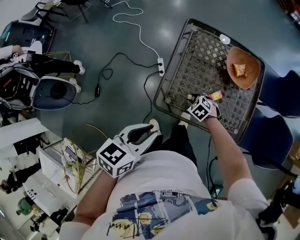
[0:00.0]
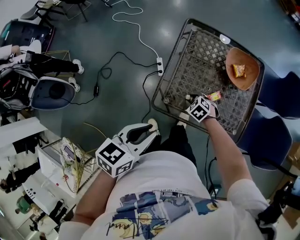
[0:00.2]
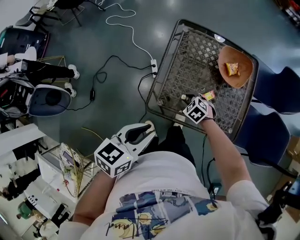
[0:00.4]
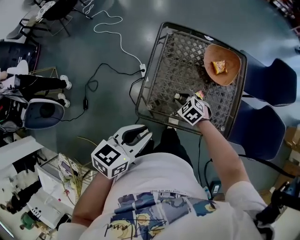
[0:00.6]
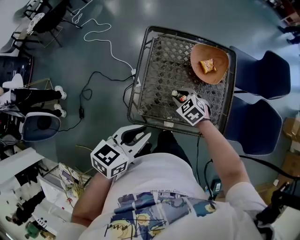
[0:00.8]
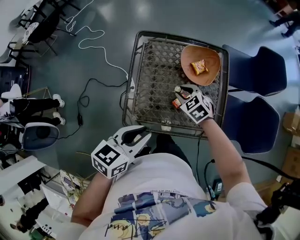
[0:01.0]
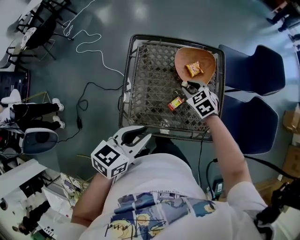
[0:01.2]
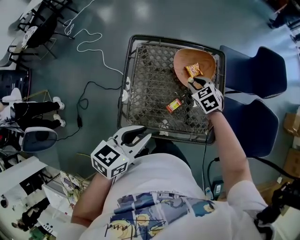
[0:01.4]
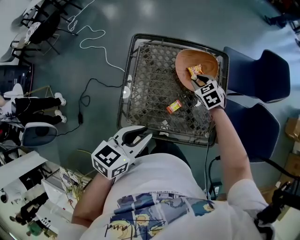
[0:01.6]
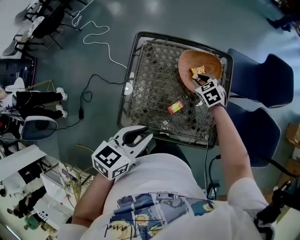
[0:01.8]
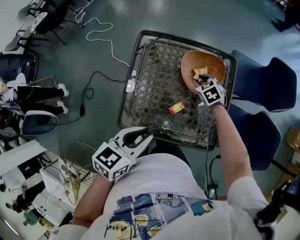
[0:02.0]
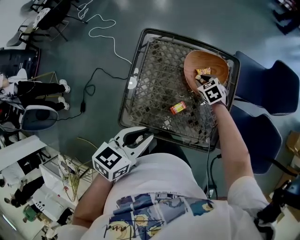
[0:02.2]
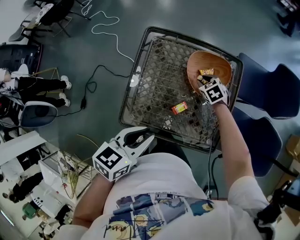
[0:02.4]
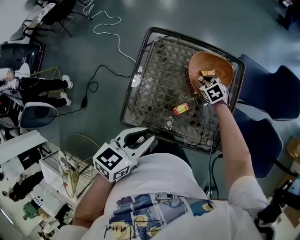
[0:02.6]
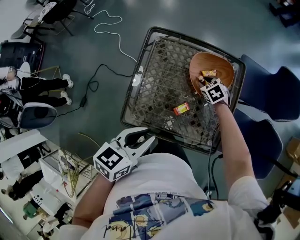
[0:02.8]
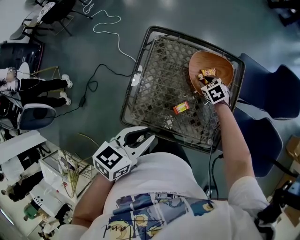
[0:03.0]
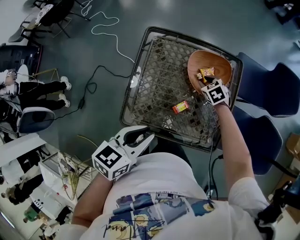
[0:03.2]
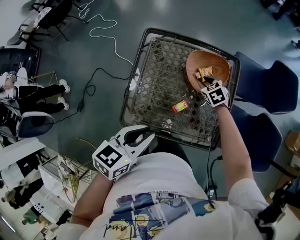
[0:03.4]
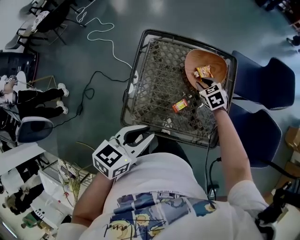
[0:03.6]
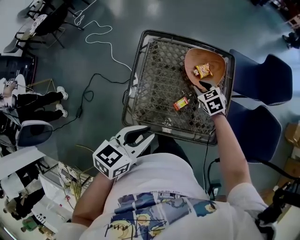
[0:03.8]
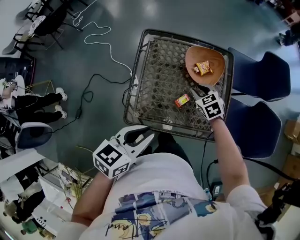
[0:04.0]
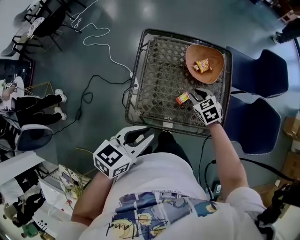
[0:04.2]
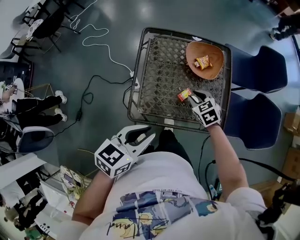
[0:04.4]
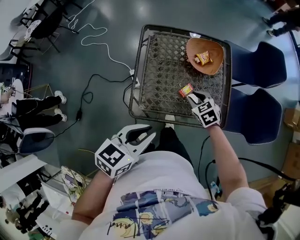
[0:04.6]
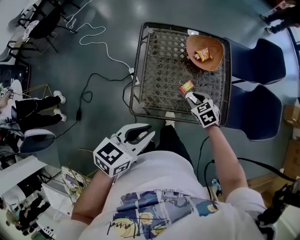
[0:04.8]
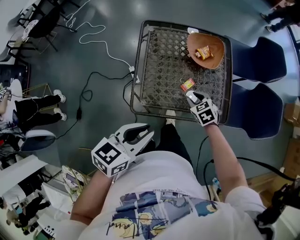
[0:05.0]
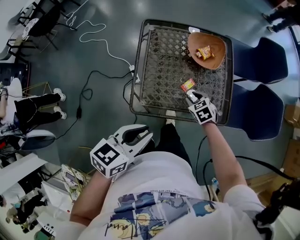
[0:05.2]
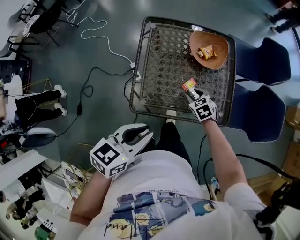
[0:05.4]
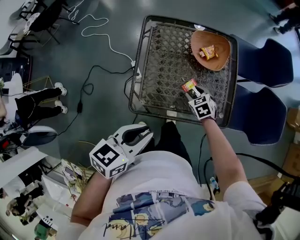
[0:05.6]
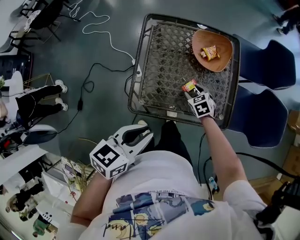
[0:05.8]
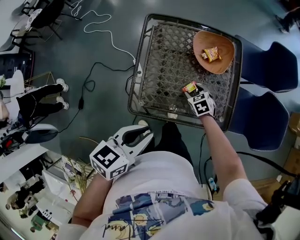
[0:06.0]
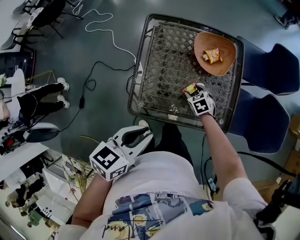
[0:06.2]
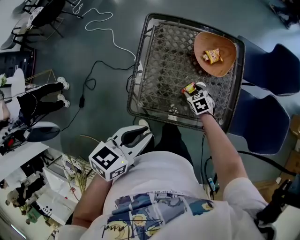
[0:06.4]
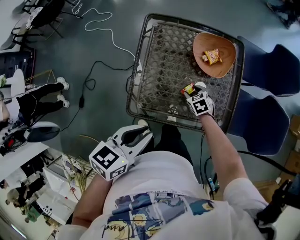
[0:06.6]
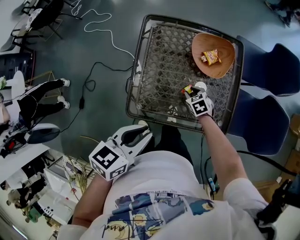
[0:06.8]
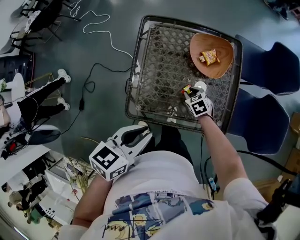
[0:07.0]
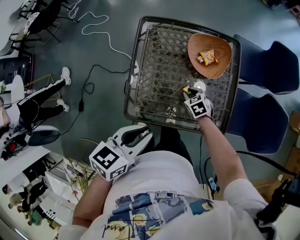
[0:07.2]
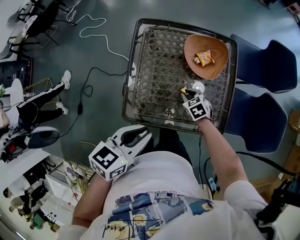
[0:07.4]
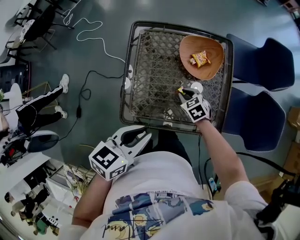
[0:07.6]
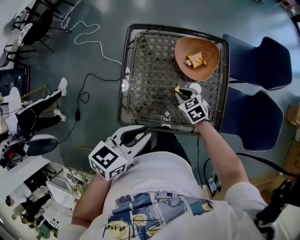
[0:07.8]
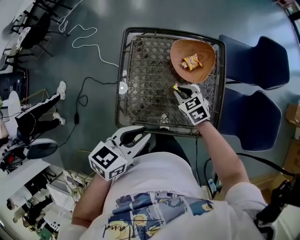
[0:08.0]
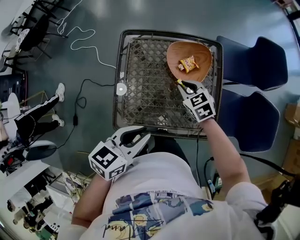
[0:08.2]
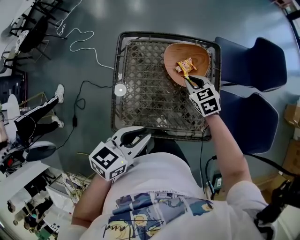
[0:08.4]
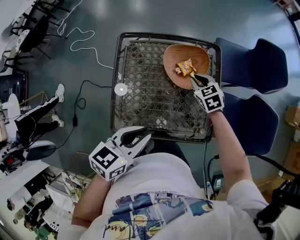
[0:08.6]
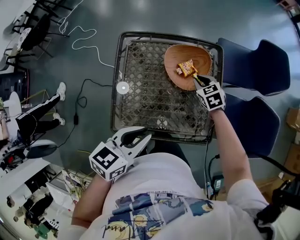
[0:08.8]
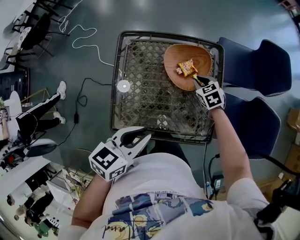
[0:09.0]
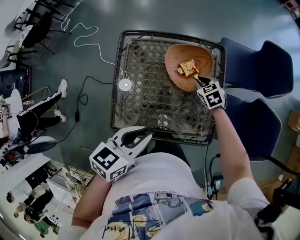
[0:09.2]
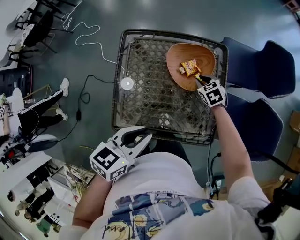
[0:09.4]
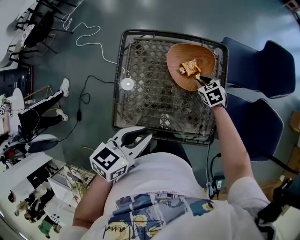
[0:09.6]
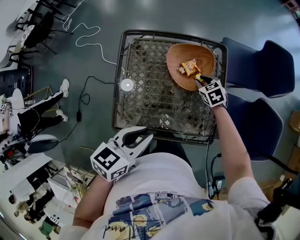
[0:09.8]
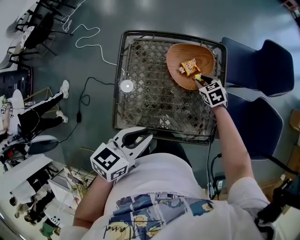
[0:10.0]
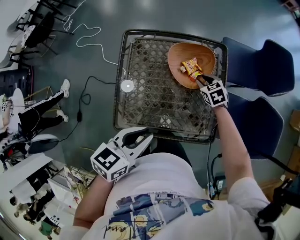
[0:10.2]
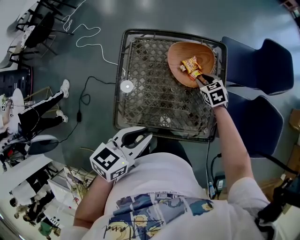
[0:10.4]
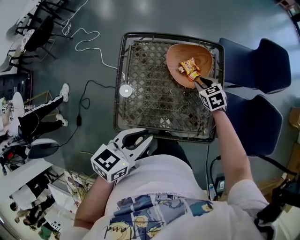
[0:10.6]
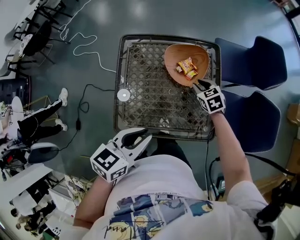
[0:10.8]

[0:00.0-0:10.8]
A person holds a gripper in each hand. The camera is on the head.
0:00.0 to 0:01.6: The left gripper ends up some 20 cm from where it was. Meanwhile the right gripper moves some 30 cm, and swivels some 30 degrees.
0:01.6 to 0:03.0: The right gripper travels downward by approximately 5 cm.
0:03.0 to 0:04.6: The right gripper moves backward, some 20 cm; the left gripper moves backward and to the left, about 10 cm.
0:04.6 to 0:06.2: The right gripper goes approximately 10 cm downward, and opens its fingers.
0:06.2 to 0:07.8: The right gripper moves upward, approximately 10 cm, and closes up, while the left gripper is displaced forward by approximately 5 cm.
0:07.8 to 0:09.2: The left gripper goes roughly 10 cm forward and to the right. Meanwhile the right gripper heads forward and to the right, covering some 20 cm.
0:09.2 to 0:10.8: The right gripper ends up roughly 5 cm from where it was.

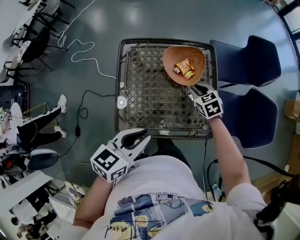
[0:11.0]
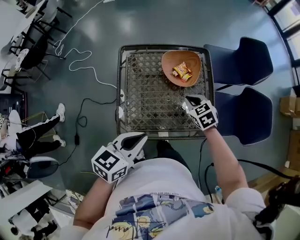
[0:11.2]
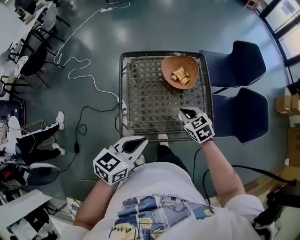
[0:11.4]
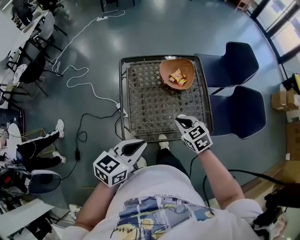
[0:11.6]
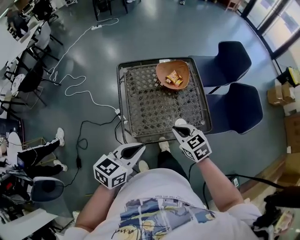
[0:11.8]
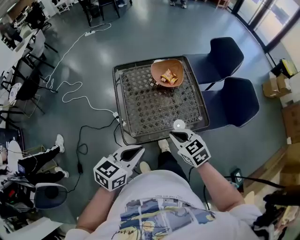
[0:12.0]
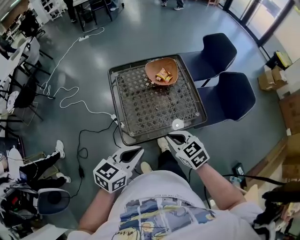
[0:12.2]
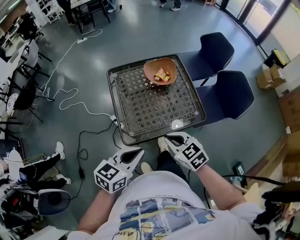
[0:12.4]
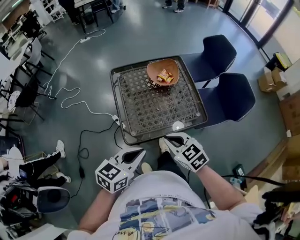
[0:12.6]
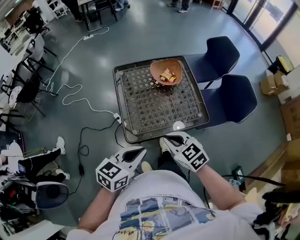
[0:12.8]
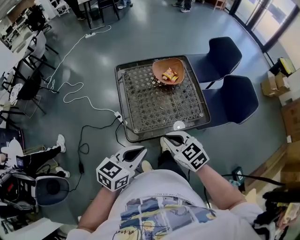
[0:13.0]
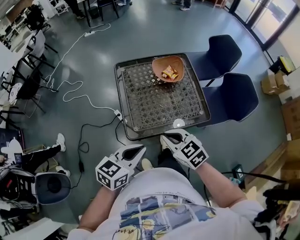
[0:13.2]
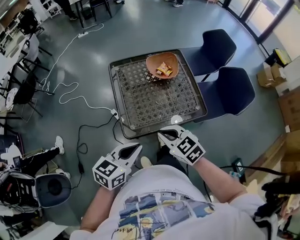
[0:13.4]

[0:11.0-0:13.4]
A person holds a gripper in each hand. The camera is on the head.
0:11.0 to 0:12.2: The right gripper is displaced backward and upward by about 35 cm, and closes its fingers. Meanwhile the left gripper is displaced backward and to the left by some 20 cm.
0:12.2 to 0:13.4: The right gripper changes place by about 5 cm.

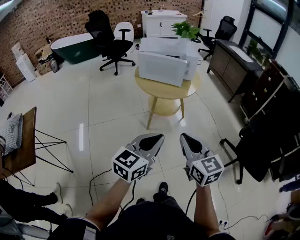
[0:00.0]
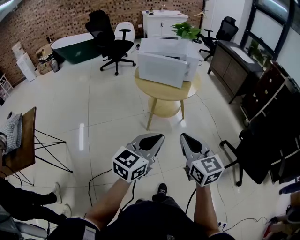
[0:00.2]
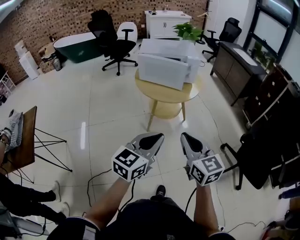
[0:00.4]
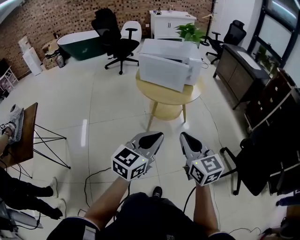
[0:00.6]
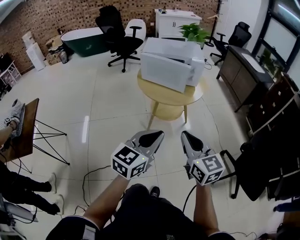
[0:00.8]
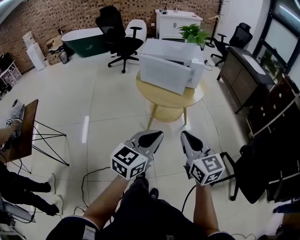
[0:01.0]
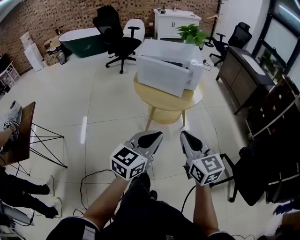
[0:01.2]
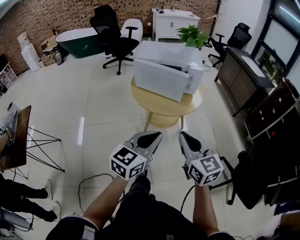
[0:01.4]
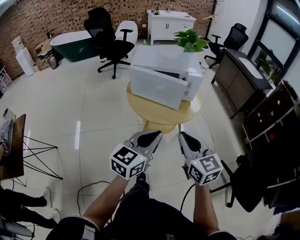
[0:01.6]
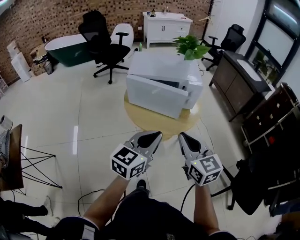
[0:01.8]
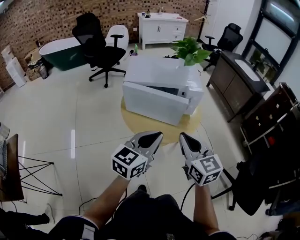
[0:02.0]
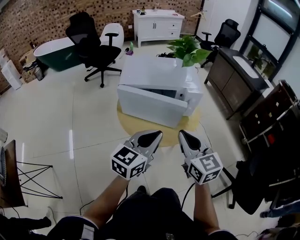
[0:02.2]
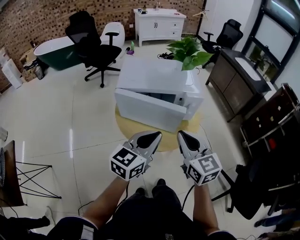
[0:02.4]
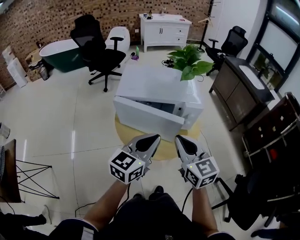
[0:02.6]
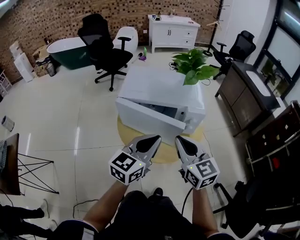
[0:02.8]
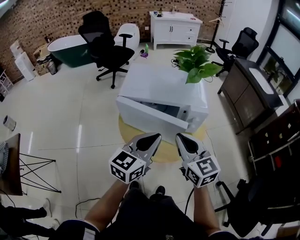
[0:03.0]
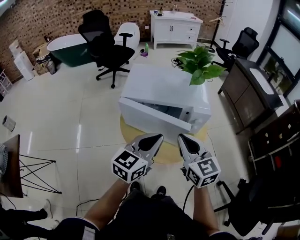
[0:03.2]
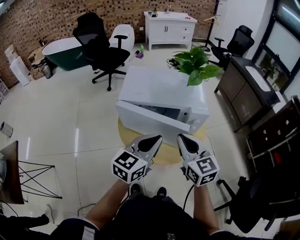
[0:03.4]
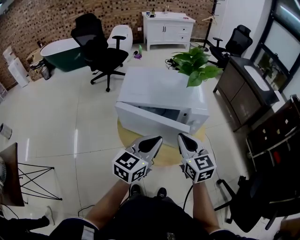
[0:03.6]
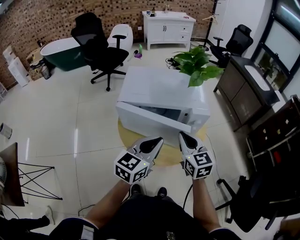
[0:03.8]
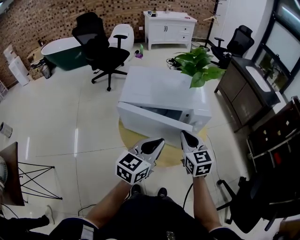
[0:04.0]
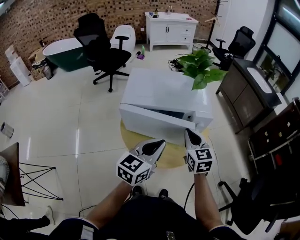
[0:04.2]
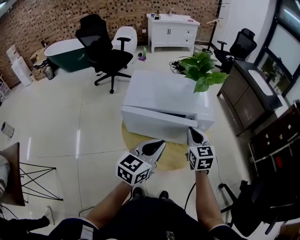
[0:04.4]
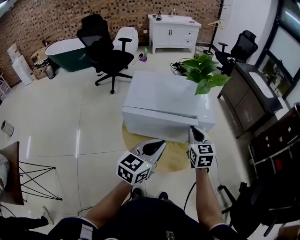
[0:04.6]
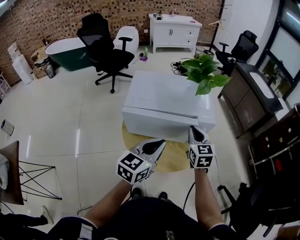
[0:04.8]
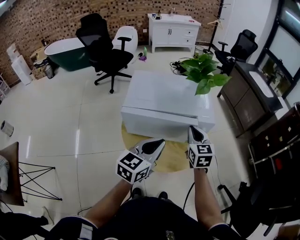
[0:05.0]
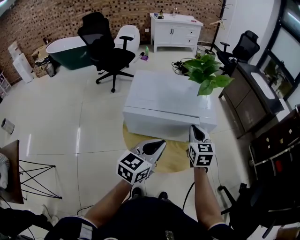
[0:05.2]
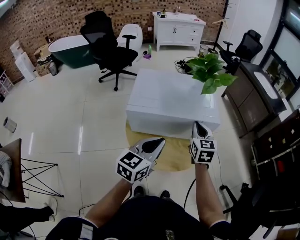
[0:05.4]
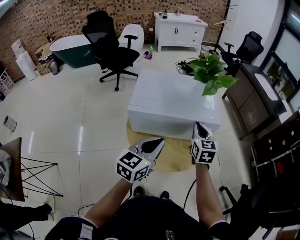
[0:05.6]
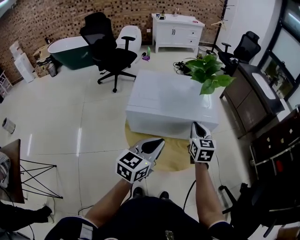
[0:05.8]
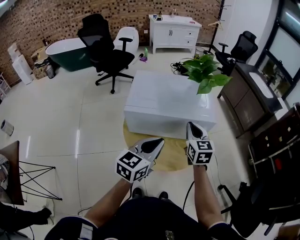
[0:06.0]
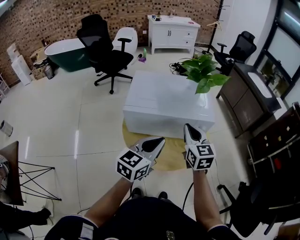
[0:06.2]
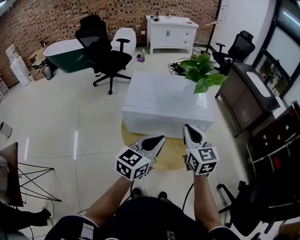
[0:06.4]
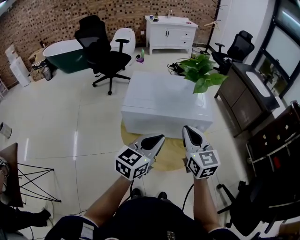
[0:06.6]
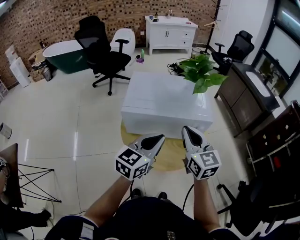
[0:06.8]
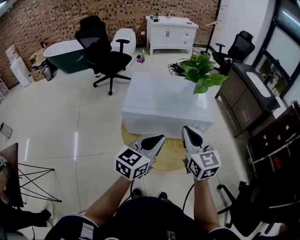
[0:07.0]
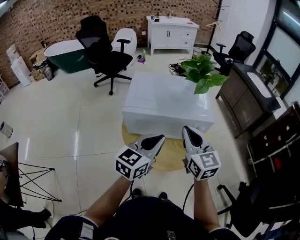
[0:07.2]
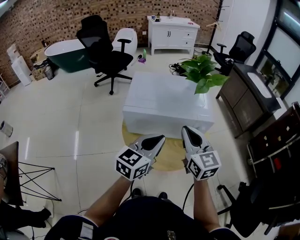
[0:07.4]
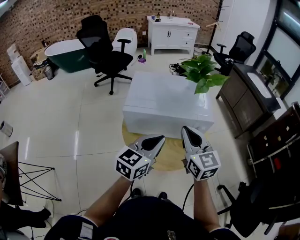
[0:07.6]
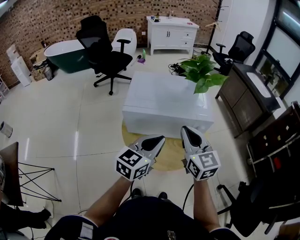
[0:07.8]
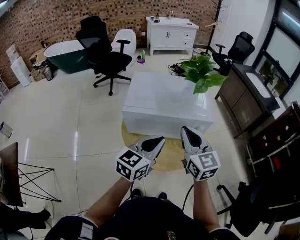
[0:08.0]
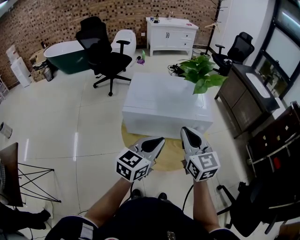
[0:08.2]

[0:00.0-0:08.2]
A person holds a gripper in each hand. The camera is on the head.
0:00.0 to 0:01.6: Both grippers travel together forward, about 25 cm.
0:01.6 to 0:03.2: The two grippers go approximately 25 cm forward.
0:03.2 to 0:05.0: The right gripper heads forward and downward, covering approximately 15 cm, and swivels roughly 20 degrees.
0:05.0 to 0:06.6: The right gripper moves upward and backward, some 10 cm.
0:06.6 to 0:08.2: There are only small adjustments of the grippers.

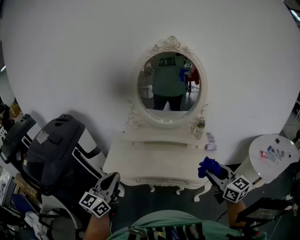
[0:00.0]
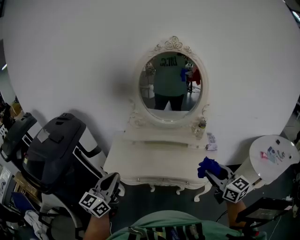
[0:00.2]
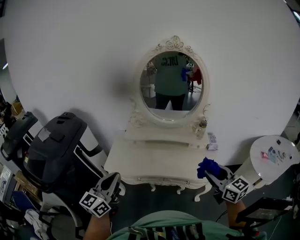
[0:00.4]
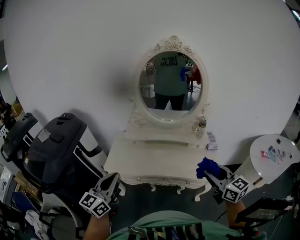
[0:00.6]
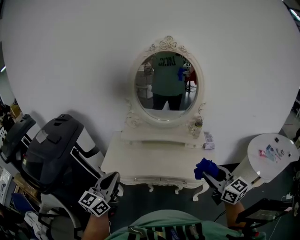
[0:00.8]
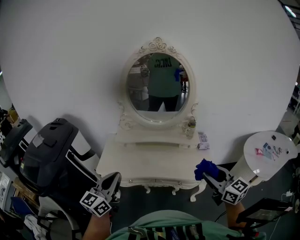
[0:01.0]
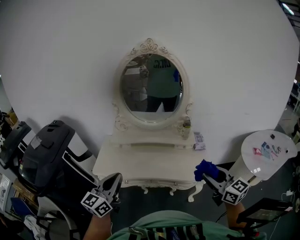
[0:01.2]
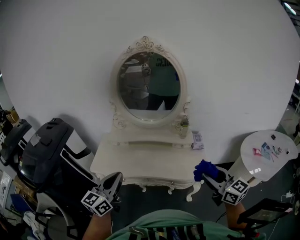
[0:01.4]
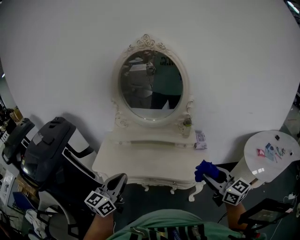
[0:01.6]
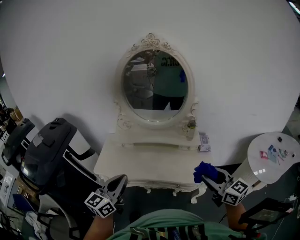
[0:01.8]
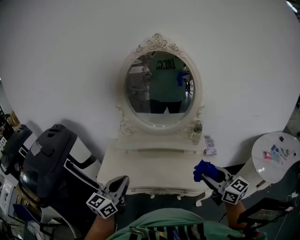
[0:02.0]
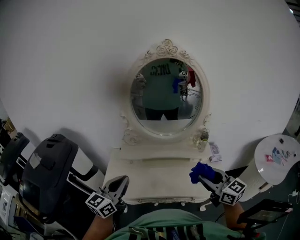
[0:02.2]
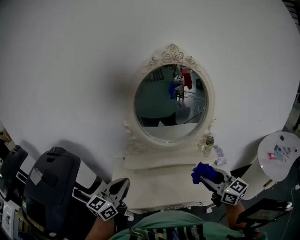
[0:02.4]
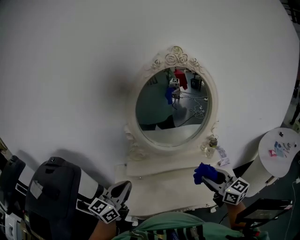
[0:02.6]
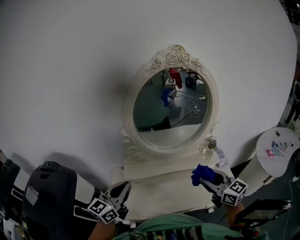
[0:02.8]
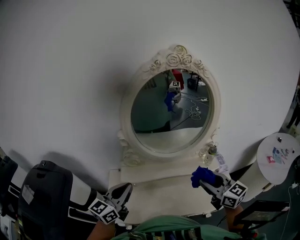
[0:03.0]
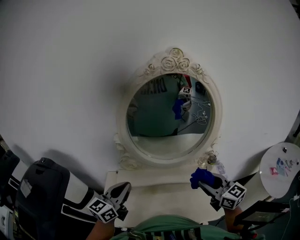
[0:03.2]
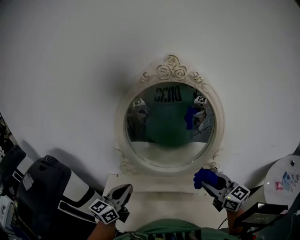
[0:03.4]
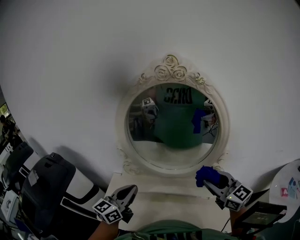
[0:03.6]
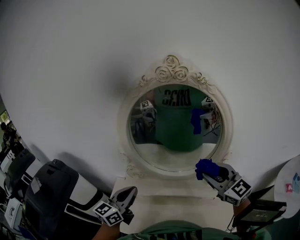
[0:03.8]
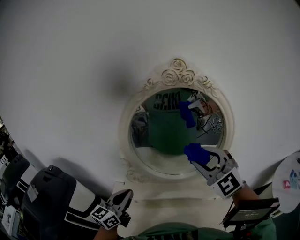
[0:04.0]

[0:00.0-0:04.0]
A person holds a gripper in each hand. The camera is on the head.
0:00.0 to 0:01.4: The left gripper changes place by about 15 cm.
0:01.4 to 0:02.6: The left gripper shifts by approximately 30 cm.
0:02.6 to 0:04.0: The left gripper ends up roughly 15 cm from where it was.
